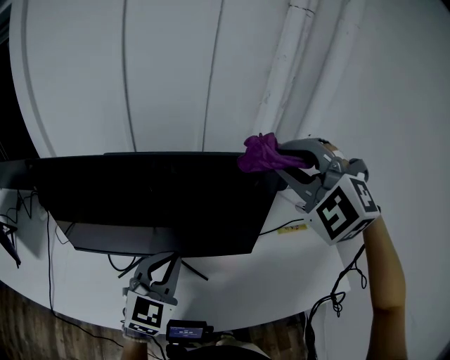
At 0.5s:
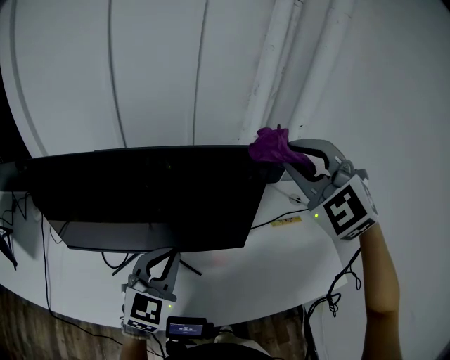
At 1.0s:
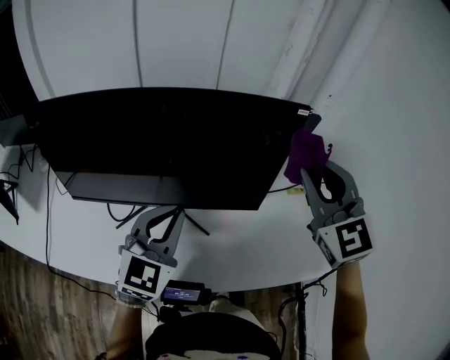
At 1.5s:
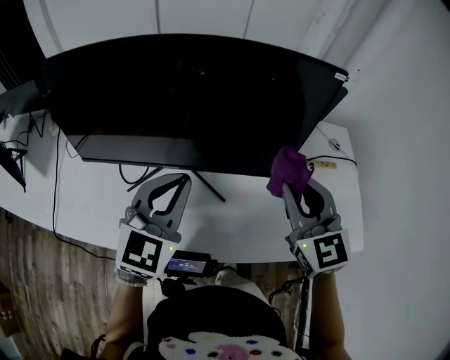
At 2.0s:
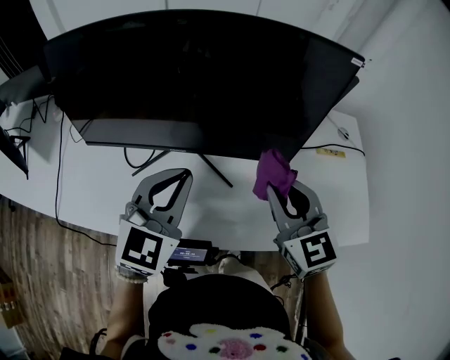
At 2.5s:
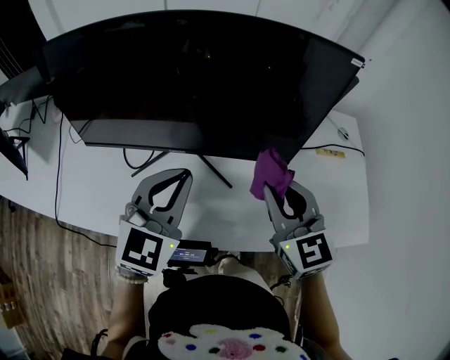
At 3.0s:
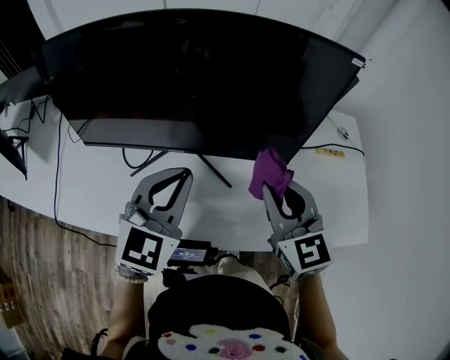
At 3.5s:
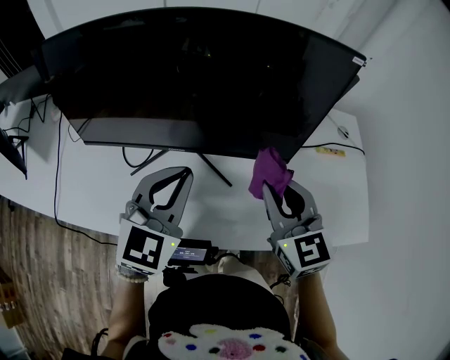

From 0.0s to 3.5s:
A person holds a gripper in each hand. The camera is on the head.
From 0.0s to 2.0s: The left gripper changes place by roughly 5 cm. Meanwhile the right gripper goes roughly 30 cm downward and backward, and twists about 60 degrees clockwise, seen from behind.
From 2.0s to 3.5s: The two grippers keep their place.

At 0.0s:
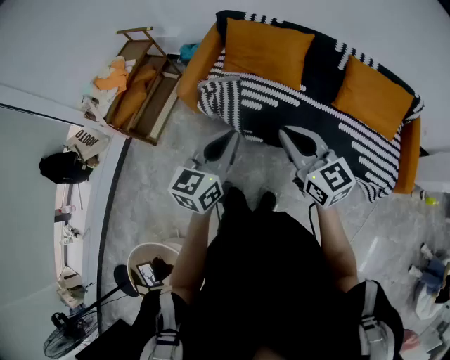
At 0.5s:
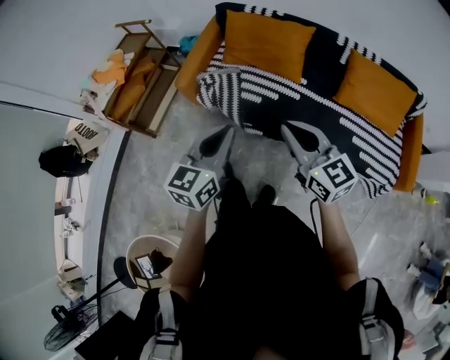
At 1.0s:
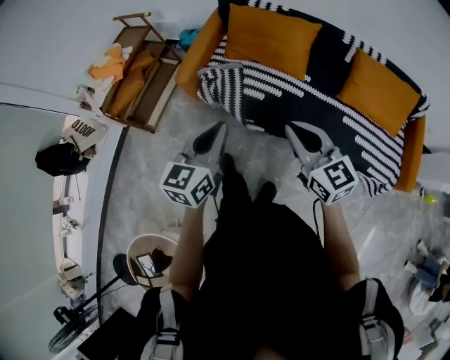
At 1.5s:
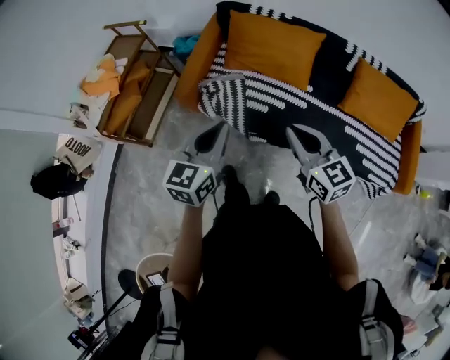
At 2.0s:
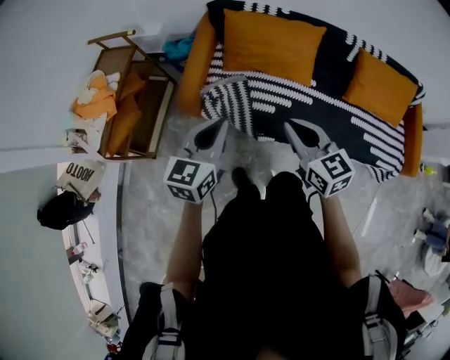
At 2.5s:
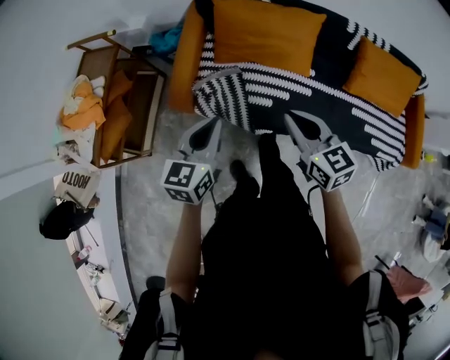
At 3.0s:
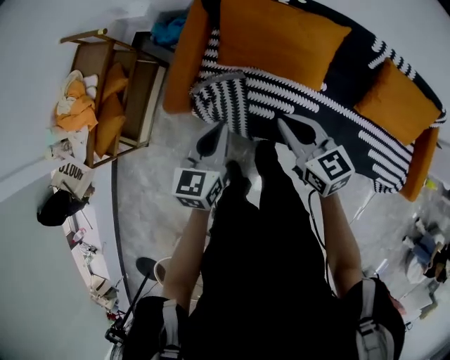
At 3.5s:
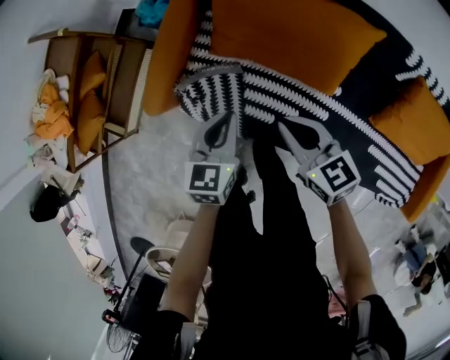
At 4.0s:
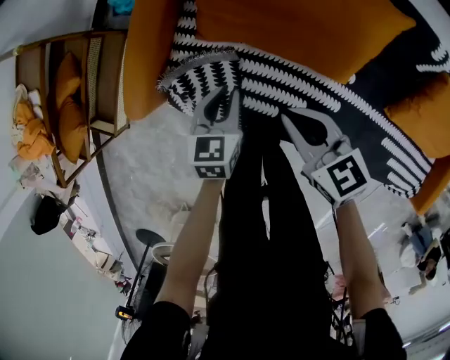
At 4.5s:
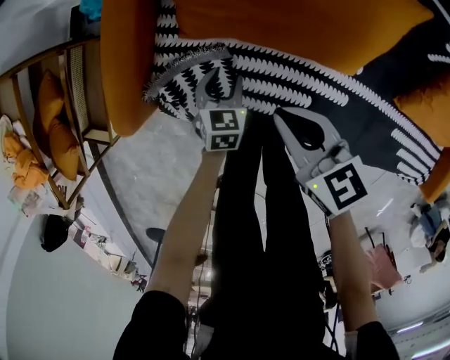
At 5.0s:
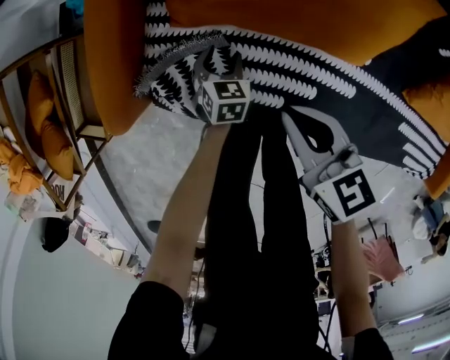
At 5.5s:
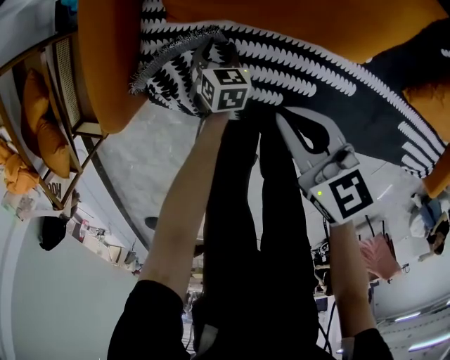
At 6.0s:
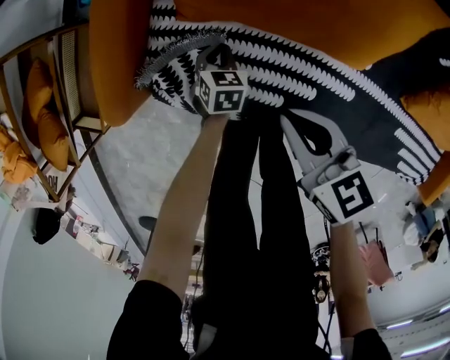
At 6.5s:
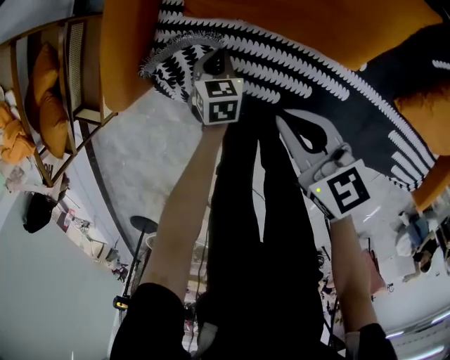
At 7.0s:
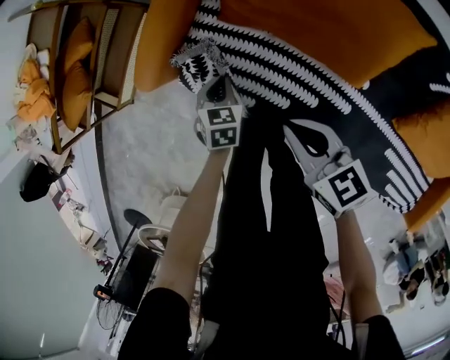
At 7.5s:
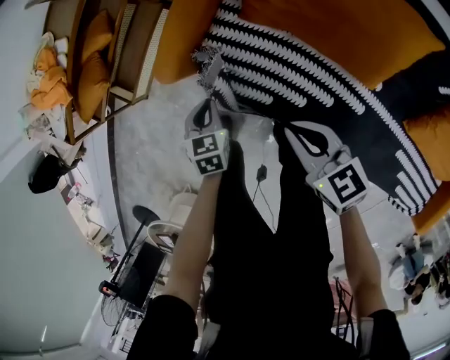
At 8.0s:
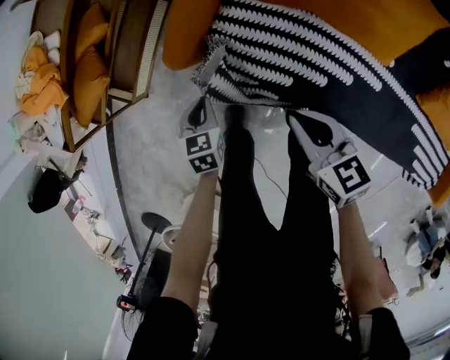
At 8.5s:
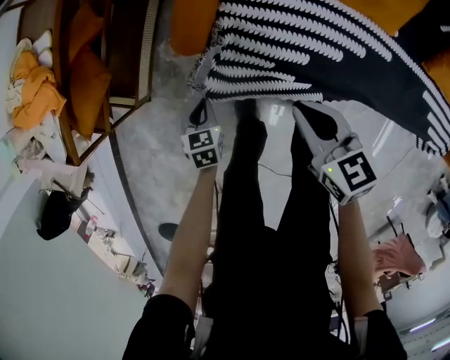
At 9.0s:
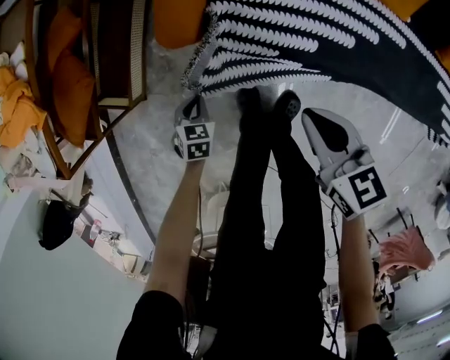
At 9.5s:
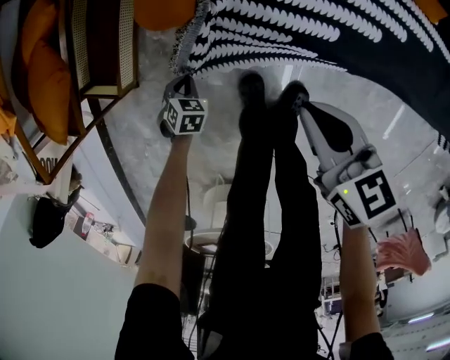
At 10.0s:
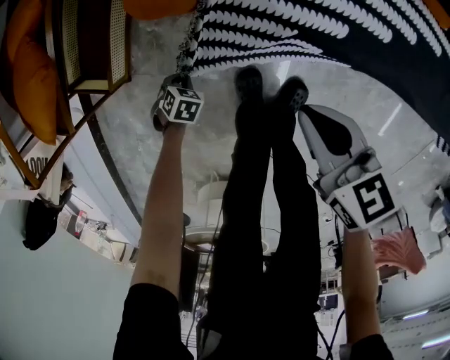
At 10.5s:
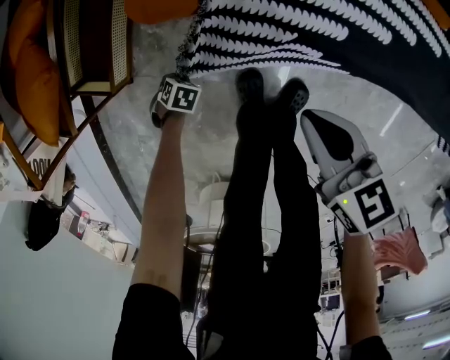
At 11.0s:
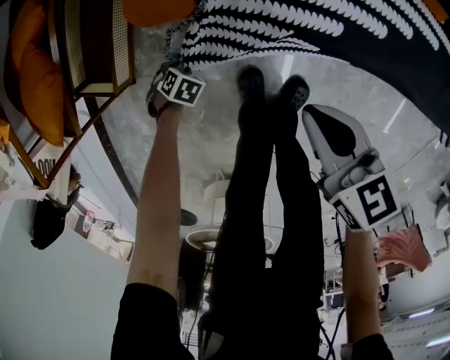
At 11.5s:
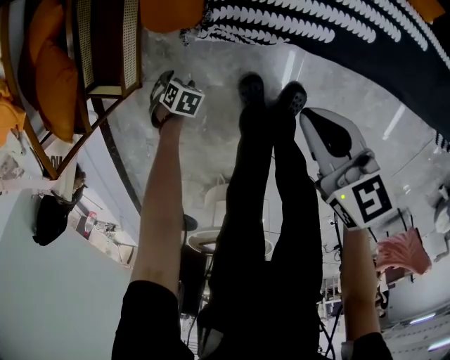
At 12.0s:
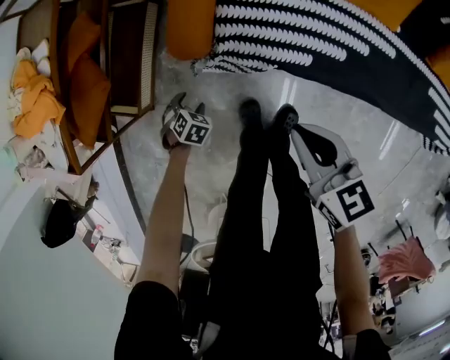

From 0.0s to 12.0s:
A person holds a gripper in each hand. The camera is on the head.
From 0.0s to 2.0s: Both grippers travel together forward and to the left, approximately 25 cm.
From 2.0s to 4.0s: Both grippers move downward and forward, some 50 cm. The left gripper swivels about 30 degrees. The right gripper turns by approximately 20 degrees.
From 4.0s to 6.0s: The right gripper heads downward, covering some 5 cm. The left gripper shifts approximately 20 cm downward, turns by about 20 degrees, and opens and closes again.
From 6.0s to 8.0s: The left gripper moves to the left and upward, about 35 cm, and turns by approximately 20 degrees; the right gripper heads to the left, covering some 20 cm.
From 8.0s to 10.0s: The left gripper moves downward, approximately 35 cm, and angles its fingers downward, by roughly 30 degrees. The right gripper travels downward by about 15 cm.
From 10.0s to 12.0s: Both grippers travel together upward, about 15 cm. The left gripper opens.

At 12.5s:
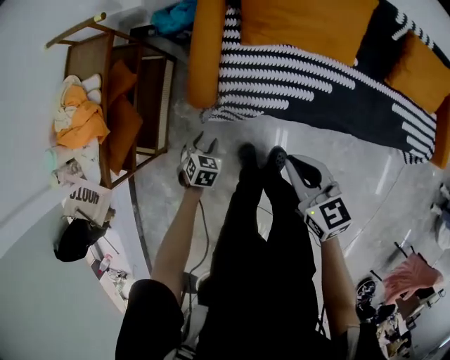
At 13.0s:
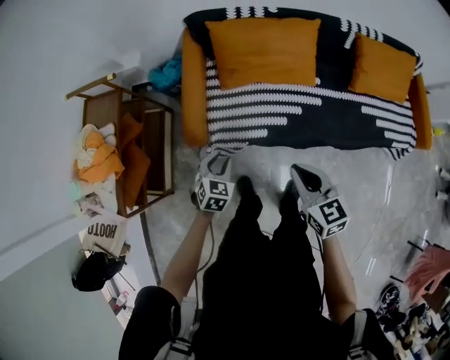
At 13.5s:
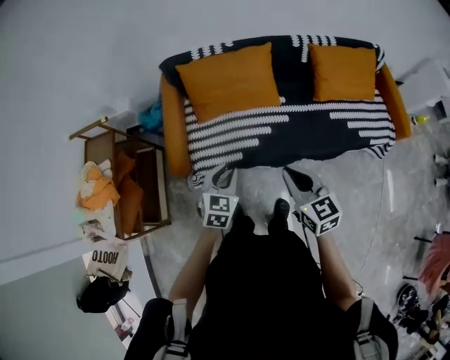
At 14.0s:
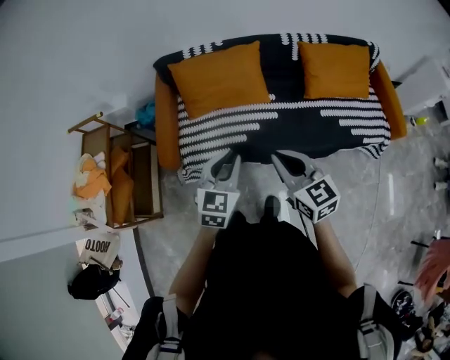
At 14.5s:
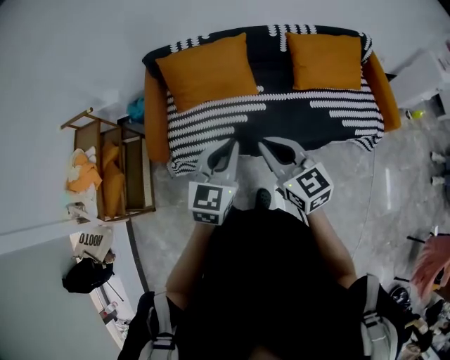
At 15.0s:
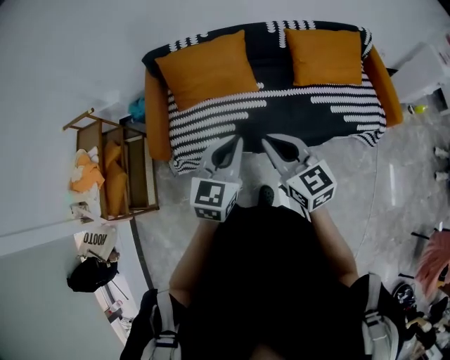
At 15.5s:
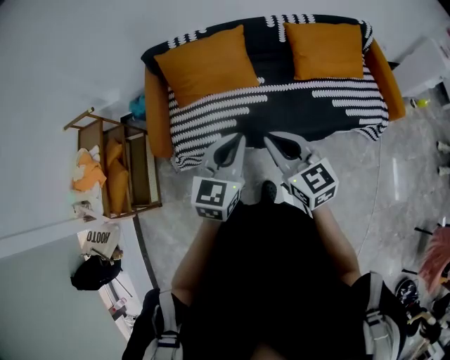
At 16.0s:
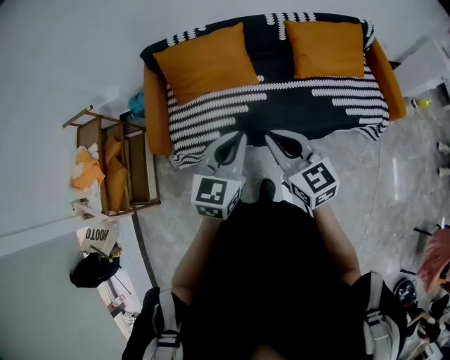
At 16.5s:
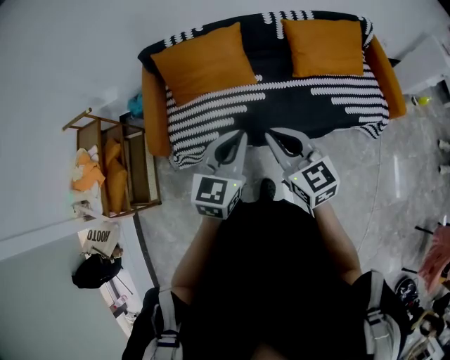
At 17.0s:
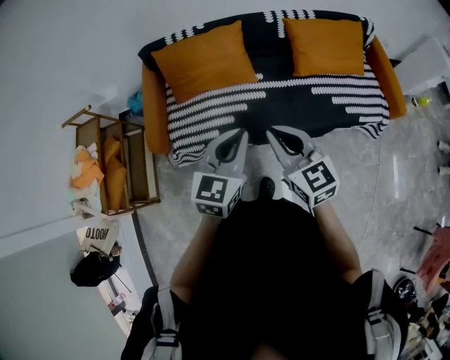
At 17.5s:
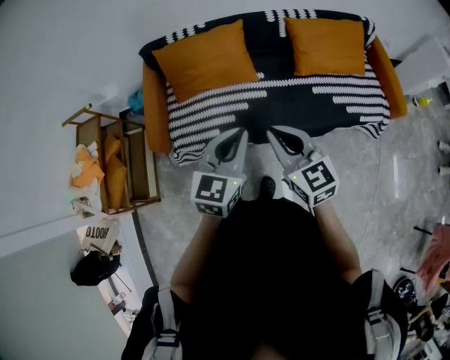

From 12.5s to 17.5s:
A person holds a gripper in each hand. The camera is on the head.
From 12.5s to 15.0s: The right gripper shifts approximately 40 cm to the right and upward, and swivels about 30 degrees; the left gripper shifts some 70 cm to the right and upward, tilts its fingers roughly 50 degrees upward, and closes its fingers.
From 15.0s to 17.5s: The grippers make only small movements.

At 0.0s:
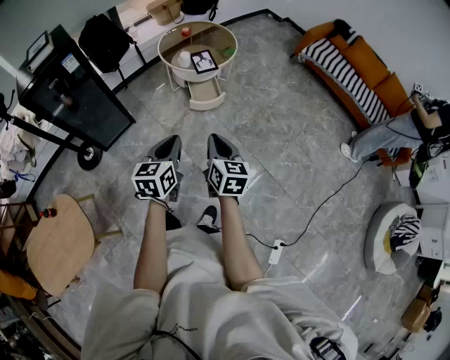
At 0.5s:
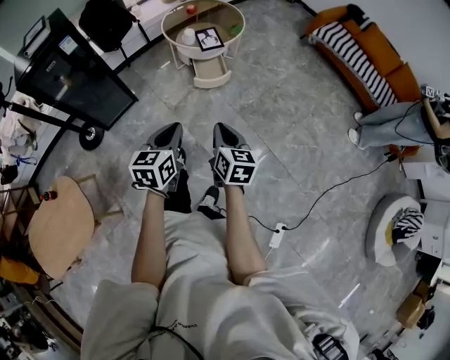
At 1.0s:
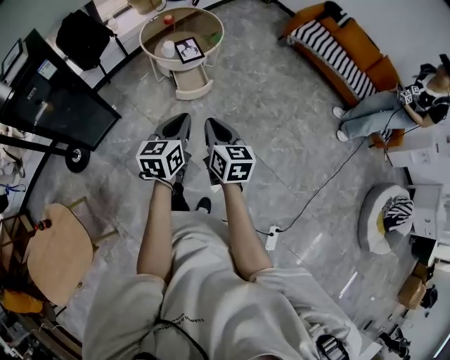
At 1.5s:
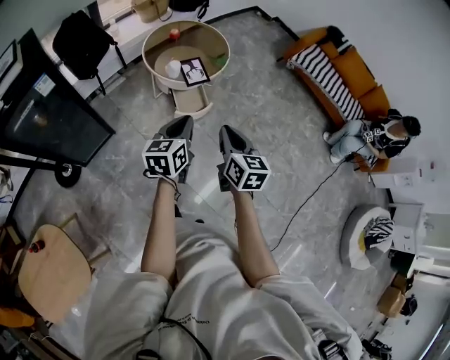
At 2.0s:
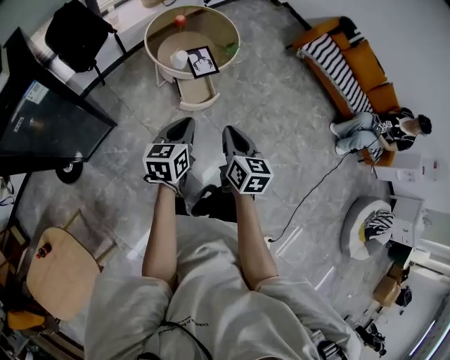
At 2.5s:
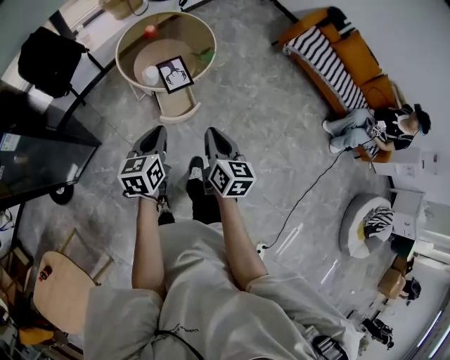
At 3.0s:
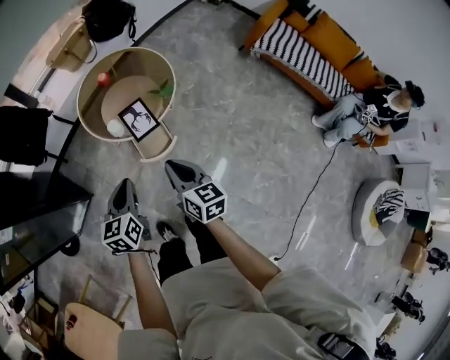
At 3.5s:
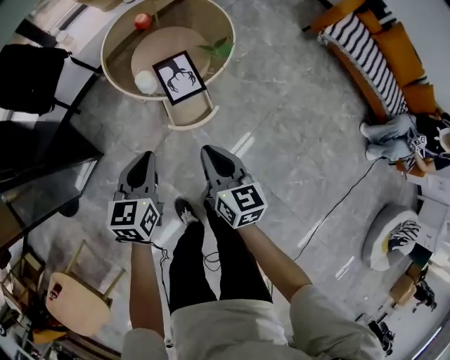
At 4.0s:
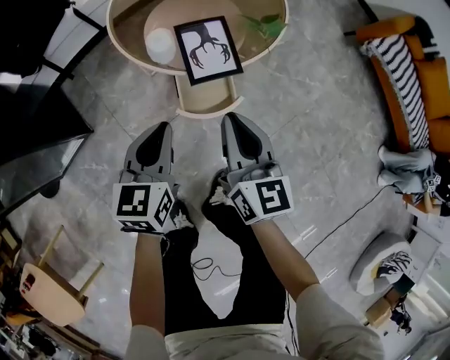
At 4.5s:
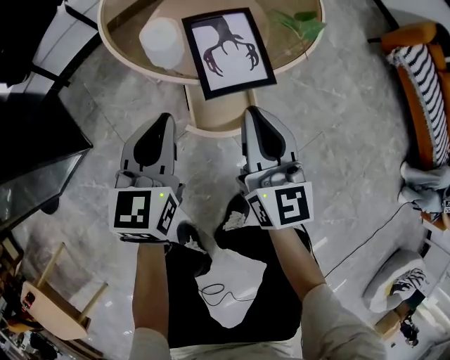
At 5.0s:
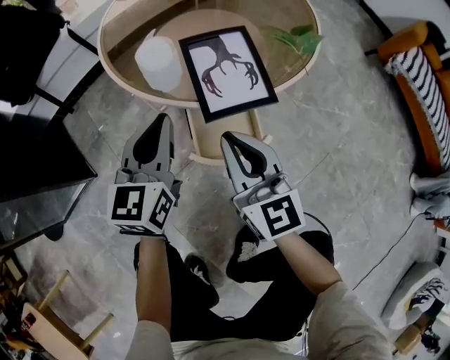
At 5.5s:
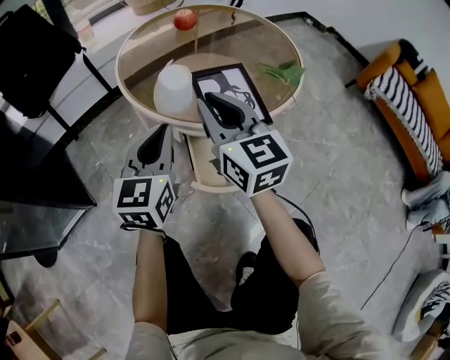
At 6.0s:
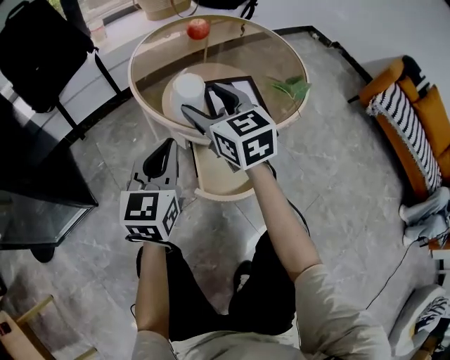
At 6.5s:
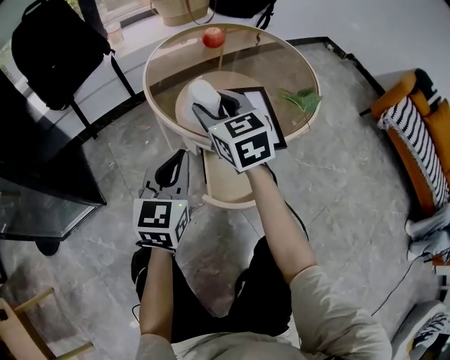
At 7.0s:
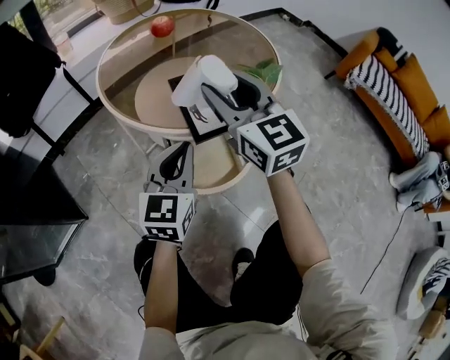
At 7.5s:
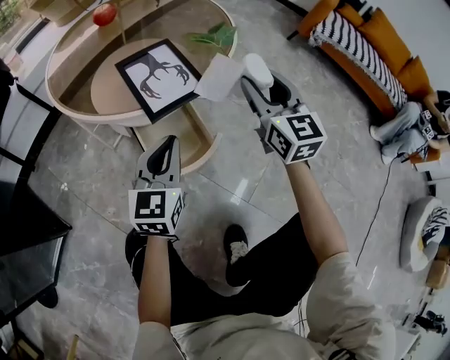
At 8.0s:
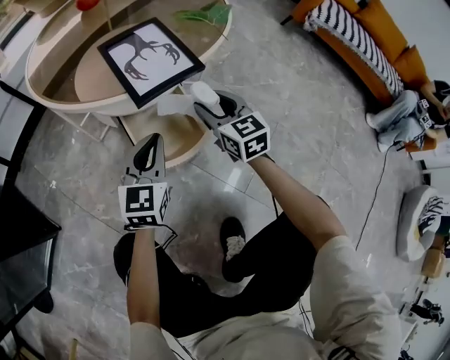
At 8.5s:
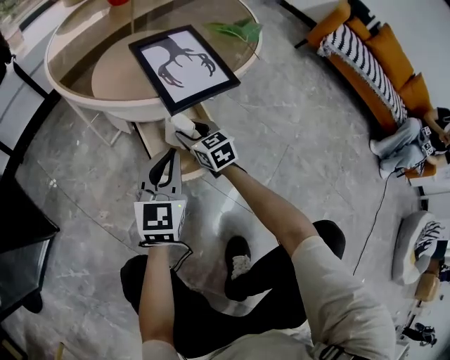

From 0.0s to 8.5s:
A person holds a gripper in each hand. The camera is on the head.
From 0.0s to 2.0s: Both grippers move forward, some 30 cm.
From 2.0s to 4.0s: The two grippers go some 40 cm downward and forward.
From 4.0s to 6.5s: The left gripper shifts approximately 15 cm downward, forward and to the left. The right gripper travels forward, to the left and downward by roughly 25 cm, turns by about 30 degrees, and opens.
From 6.5s to 8.5s: The left gripper moves downward, approximately 15 cm; the right gripper heads downward, covering about 35 cm, and turns by some 20 degrees.
